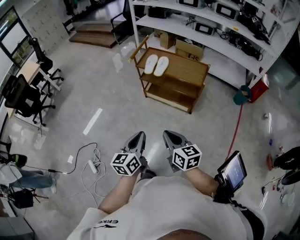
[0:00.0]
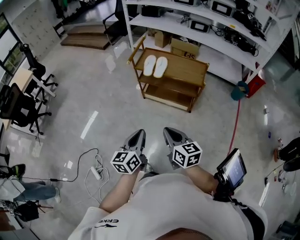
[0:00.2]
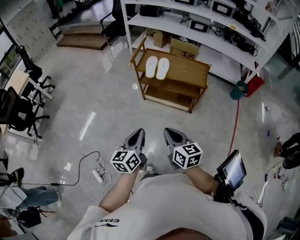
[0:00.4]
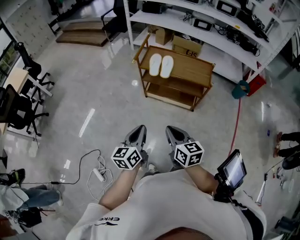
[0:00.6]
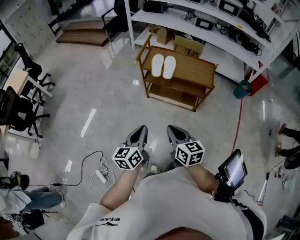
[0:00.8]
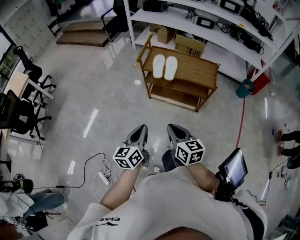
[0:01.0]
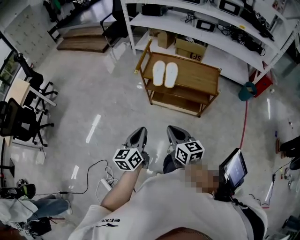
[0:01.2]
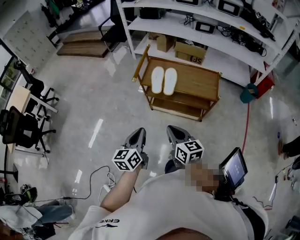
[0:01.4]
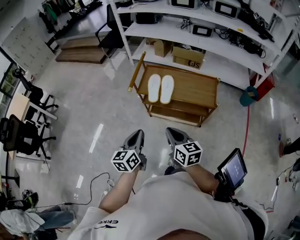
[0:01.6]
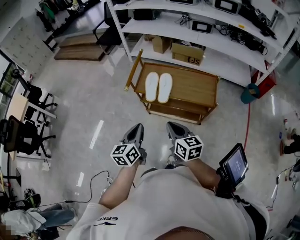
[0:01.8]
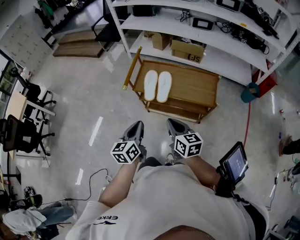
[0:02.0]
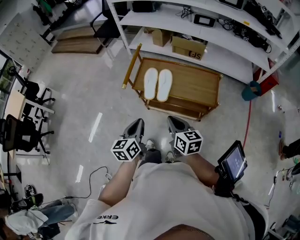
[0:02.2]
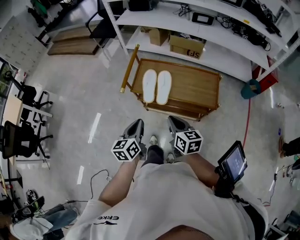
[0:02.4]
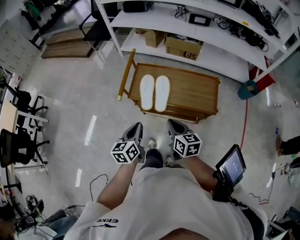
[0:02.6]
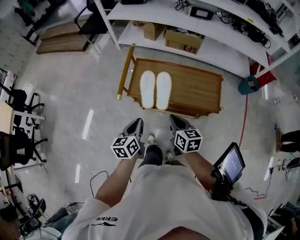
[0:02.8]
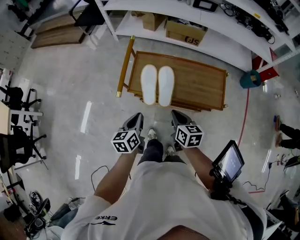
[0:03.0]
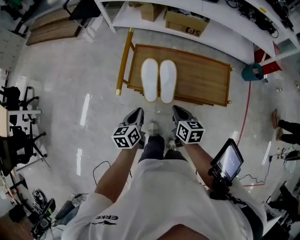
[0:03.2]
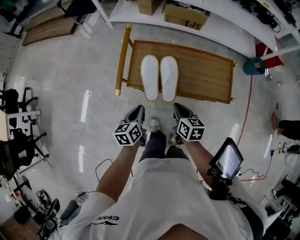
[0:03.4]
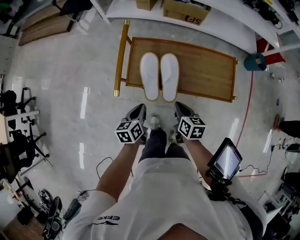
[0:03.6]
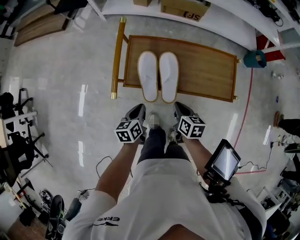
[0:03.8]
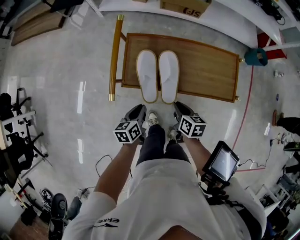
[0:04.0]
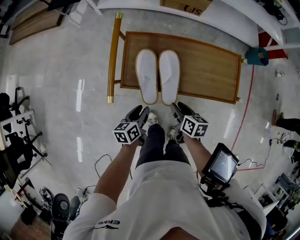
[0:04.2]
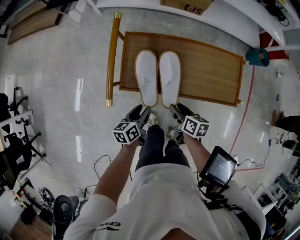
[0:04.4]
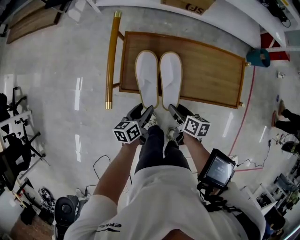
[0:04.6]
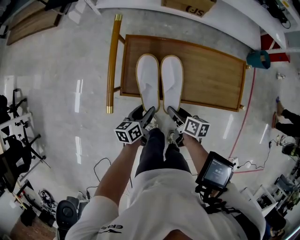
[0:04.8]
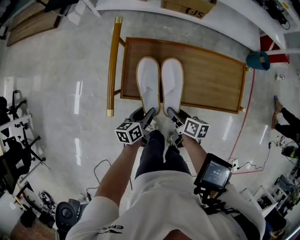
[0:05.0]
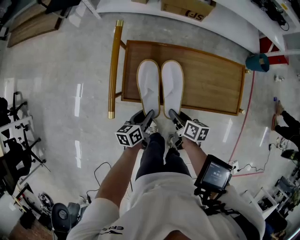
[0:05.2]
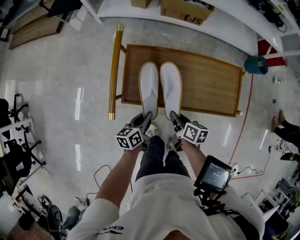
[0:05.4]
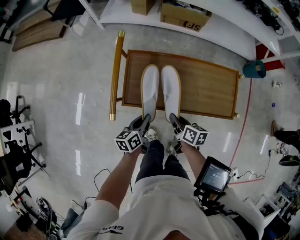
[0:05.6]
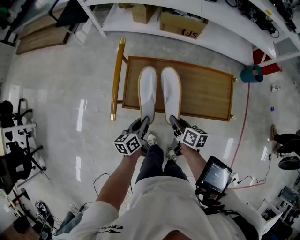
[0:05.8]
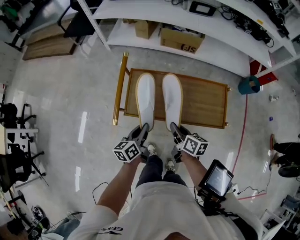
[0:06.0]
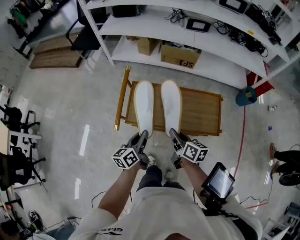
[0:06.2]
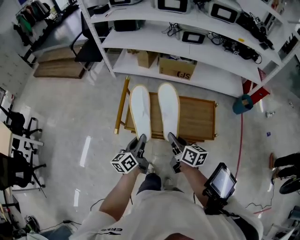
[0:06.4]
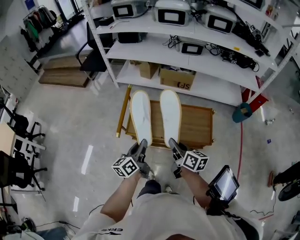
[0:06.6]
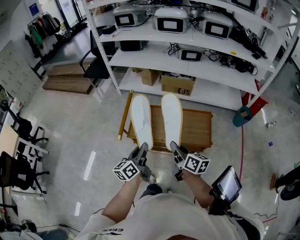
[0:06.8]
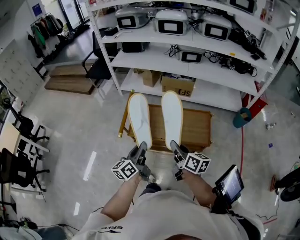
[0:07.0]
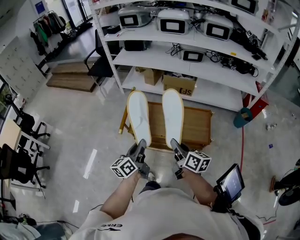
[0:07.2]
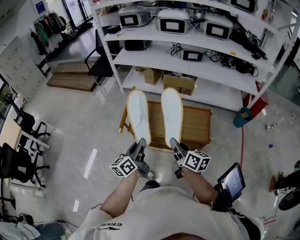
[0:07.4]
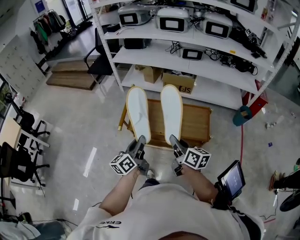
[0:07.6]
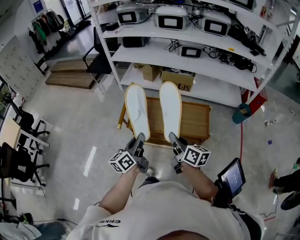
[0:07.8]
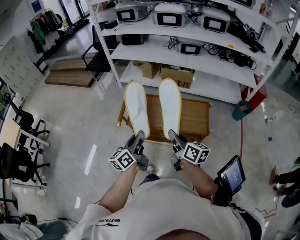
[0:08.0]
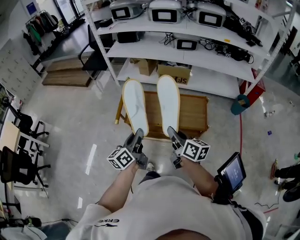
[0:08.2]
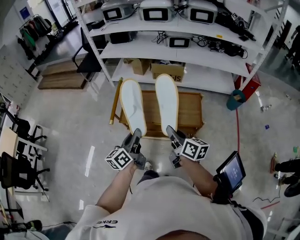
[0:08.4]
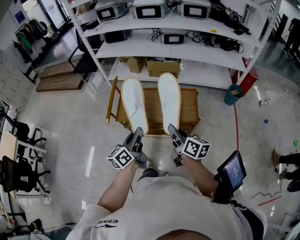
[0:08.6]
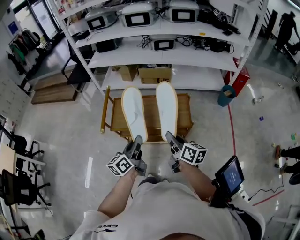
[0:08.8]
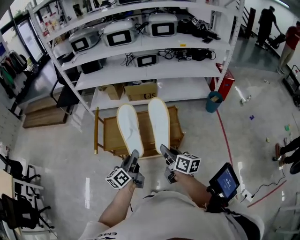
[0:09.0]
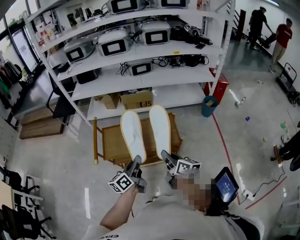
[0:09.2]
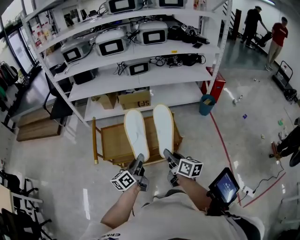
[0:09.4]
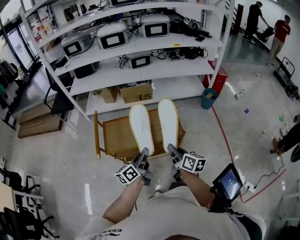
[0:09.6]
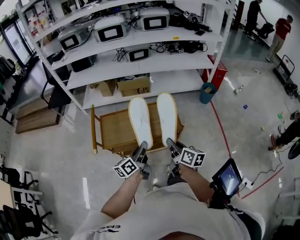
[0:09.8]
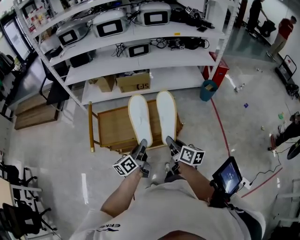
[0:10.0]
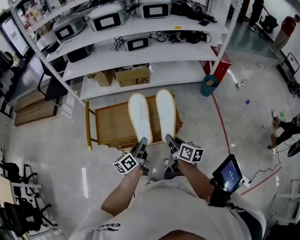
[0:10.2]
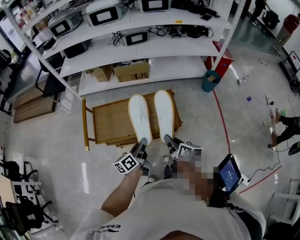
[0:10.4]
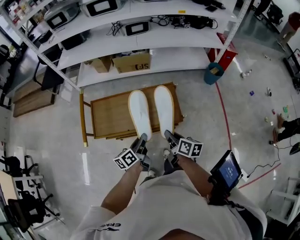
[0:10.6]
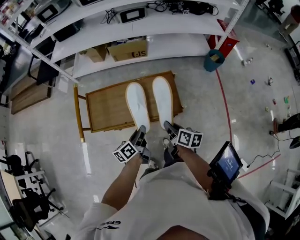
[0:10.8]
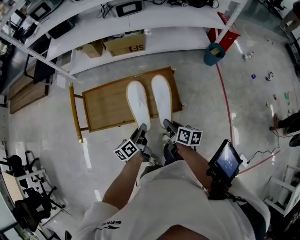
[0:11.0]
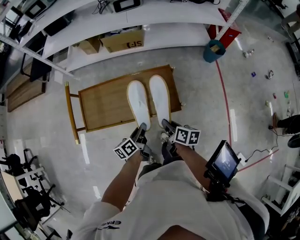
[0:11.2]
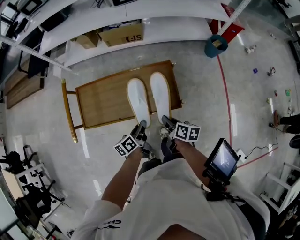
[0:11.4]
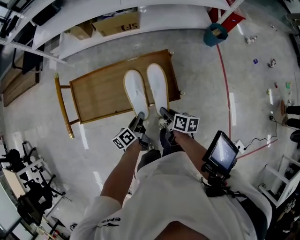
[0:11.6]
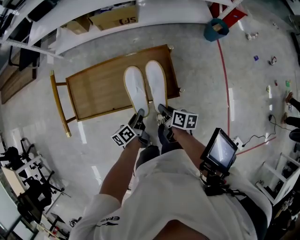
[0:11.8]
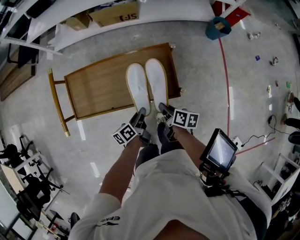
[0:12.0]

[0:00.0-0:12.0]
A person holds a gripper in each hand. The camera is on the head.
0:00.0 to 0:01.6: Both grippers travel together forward, about 30 cm.
0:01.6 to 0:03.0: The grippers both shift forward and downward by some 25 cm.
0:03.0 to 0:04.4: The left gripper is displaced downward and forward by roughly 20 cm, rotates approximately 20 degrees, and opens. The right gripper moves downward, some 15 cm, rotates some 30 degrees, and opens up.
0:04.4 to 0:06.0: Both grippers move upward, approximately 10 cm. The right gripper closes its fingers, while the left gripper closes.
0:06.0 to 0:07.6: Both grippers move upward and backward, some 25 cm. The right gripper changes its angle by about 20 degrees. Meanwhile the left gripper turns by approximately 20 degrees.
0:07.6 to 0:09.0: The grippers both shift to the right by approximately 10 cm.
0:09.0 to 0:10.4: The left gripper heads downward, forward and to the right, covering some 15 cm; the right gripper is displaced downward and forward by some 10 cm.
0:10.4 to 0:12.0: The right gripper heads downward and forward, covering some 20 cm, and rotates some 20 degrees, while the left gripper is displaced downward by roughly 15 cm, and changes its angle by roughly 20 degrees.

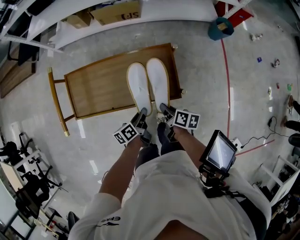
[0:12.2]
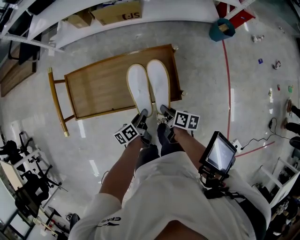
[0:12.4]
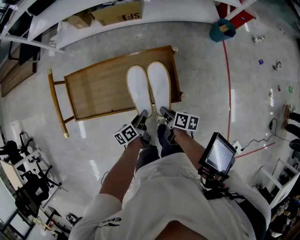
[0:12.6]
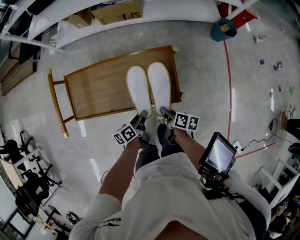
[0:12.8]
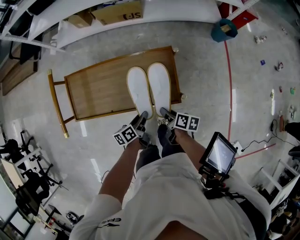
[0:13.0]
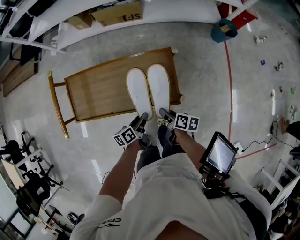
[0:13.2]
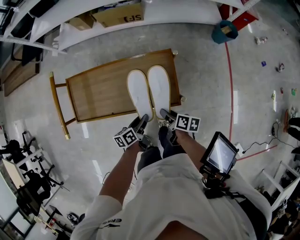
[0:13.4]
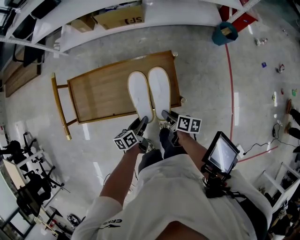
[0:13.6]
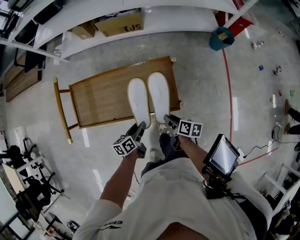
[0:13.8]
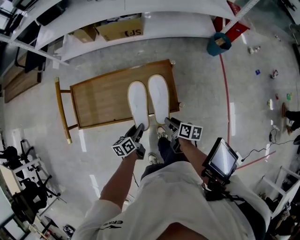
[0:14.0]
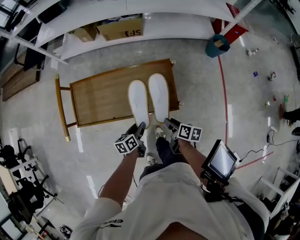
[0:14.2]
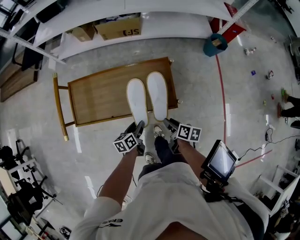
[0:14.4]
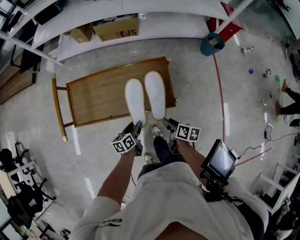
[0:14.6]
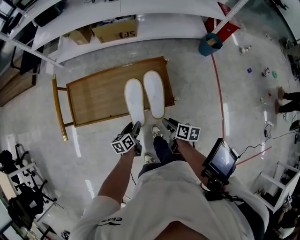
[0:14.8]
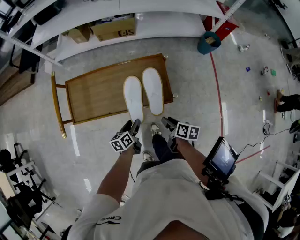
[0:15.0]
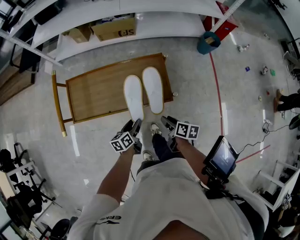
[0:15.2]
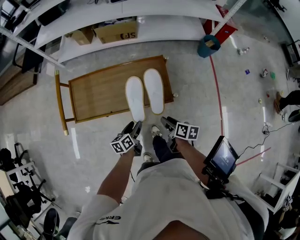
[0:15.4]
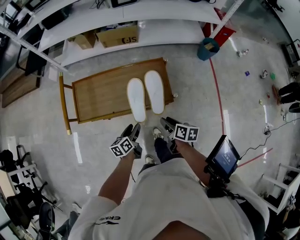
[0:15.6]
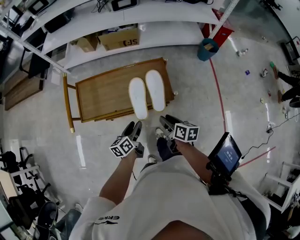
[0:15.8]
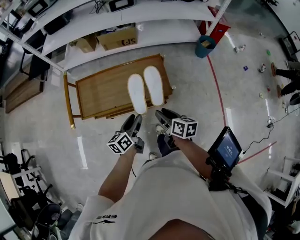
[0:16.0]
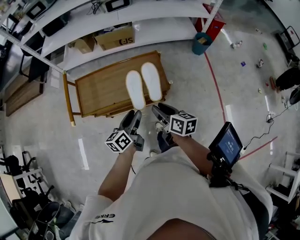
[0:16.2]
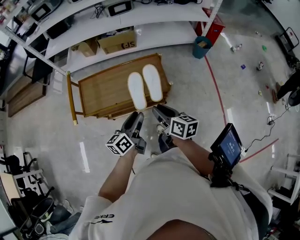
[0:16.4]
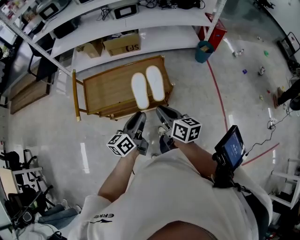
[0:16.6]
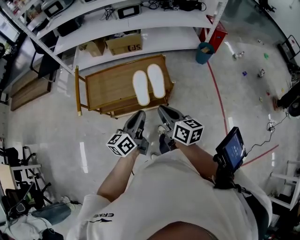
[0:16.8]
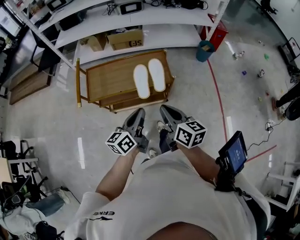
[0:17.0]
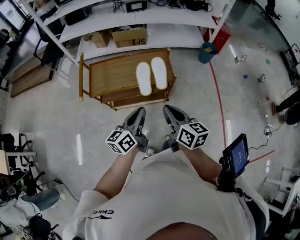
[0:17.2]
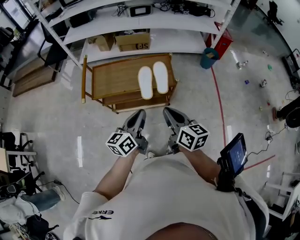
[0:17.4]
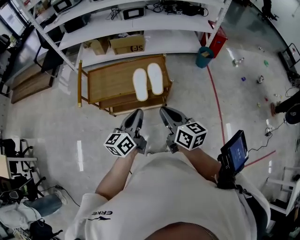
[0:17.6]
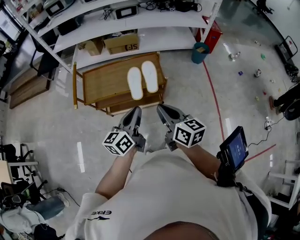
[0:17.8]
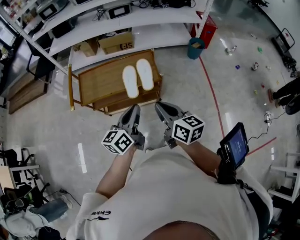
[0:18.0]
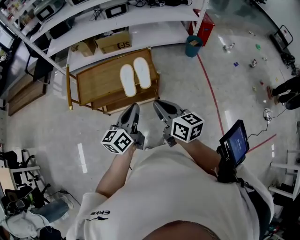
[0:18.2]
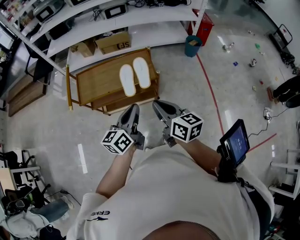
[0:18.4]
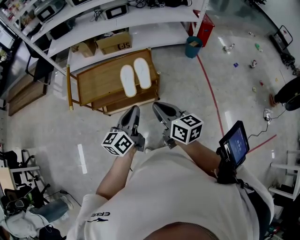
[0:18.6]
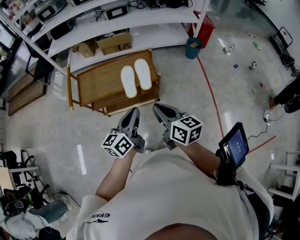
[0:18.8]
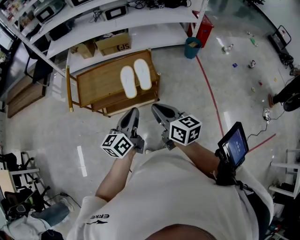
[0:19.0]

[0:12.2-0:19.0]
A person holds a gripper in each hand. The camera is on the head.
0:12.2 to 0:13.6: The left gripper opens its fingers. Meanwhile the right gripper opens up.
0:13.6 to 0:15.0: The right gripper heads backward, covering some 5 cm.
0:15.0 to 0:16.2: The right gripper shifts about 15 cm upward and to the left, and changes its angle by some 30 degrees. Meanwhile the left gripper goes approximately 20 cm upward, and swivels some 20 degrees.
0:16.2 to 0:17.6: The two grippers go approximately 20 cm backward and upward. The left gripper closes up, while the right gripper closes.
0:17.6 to 0:19.0: The grippers make only small movements.

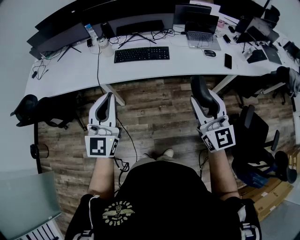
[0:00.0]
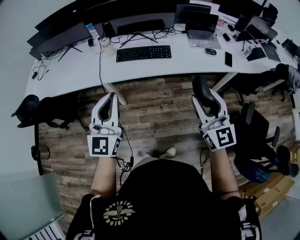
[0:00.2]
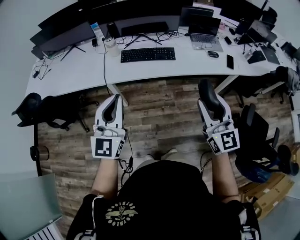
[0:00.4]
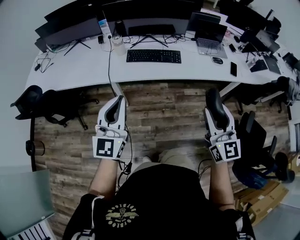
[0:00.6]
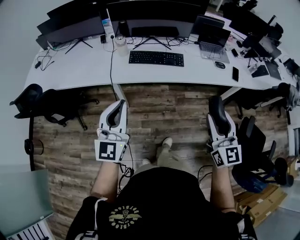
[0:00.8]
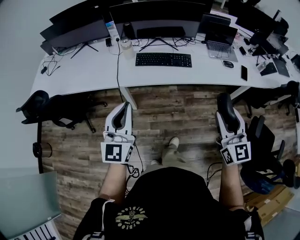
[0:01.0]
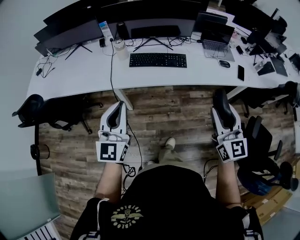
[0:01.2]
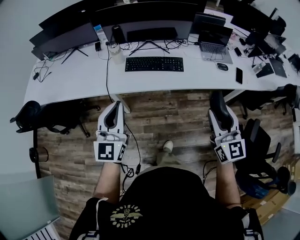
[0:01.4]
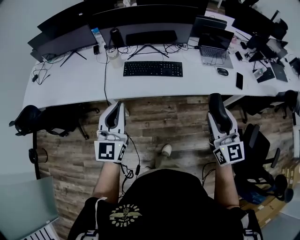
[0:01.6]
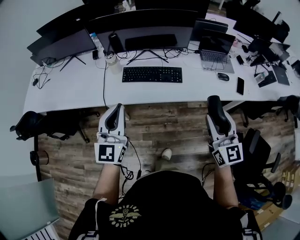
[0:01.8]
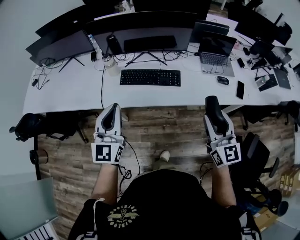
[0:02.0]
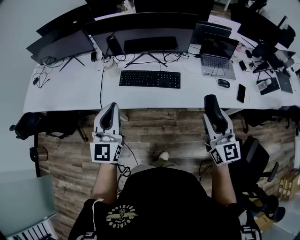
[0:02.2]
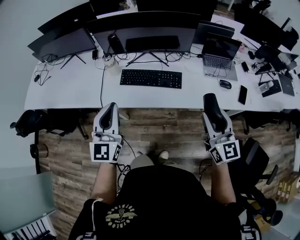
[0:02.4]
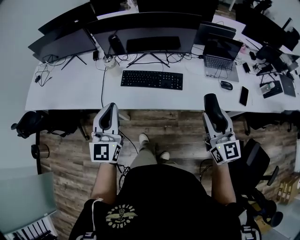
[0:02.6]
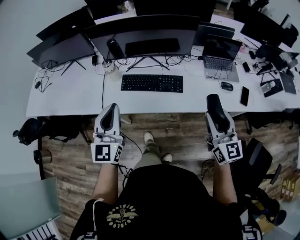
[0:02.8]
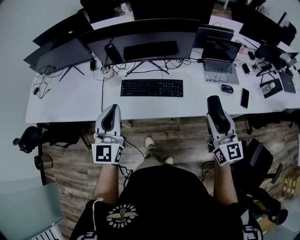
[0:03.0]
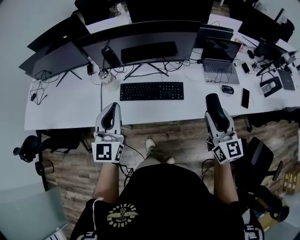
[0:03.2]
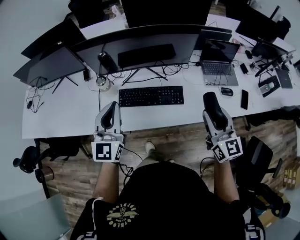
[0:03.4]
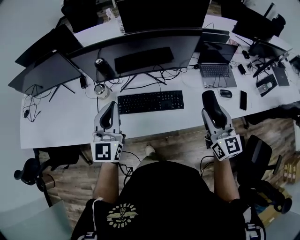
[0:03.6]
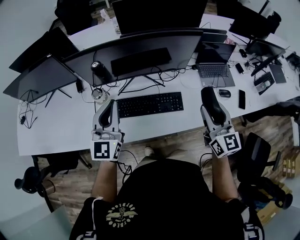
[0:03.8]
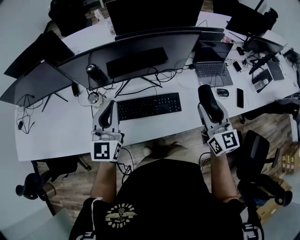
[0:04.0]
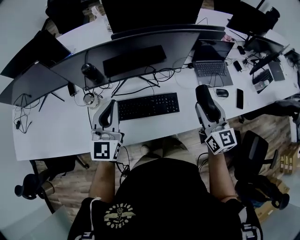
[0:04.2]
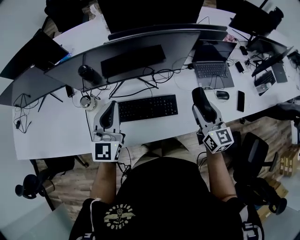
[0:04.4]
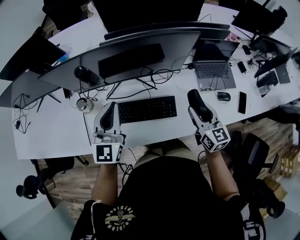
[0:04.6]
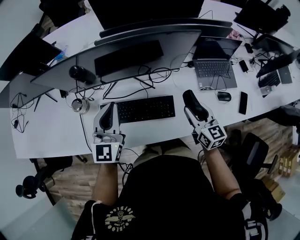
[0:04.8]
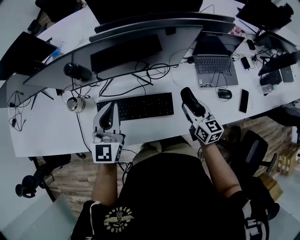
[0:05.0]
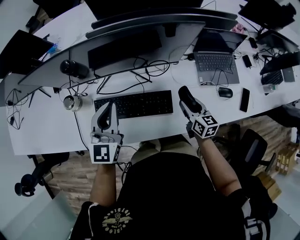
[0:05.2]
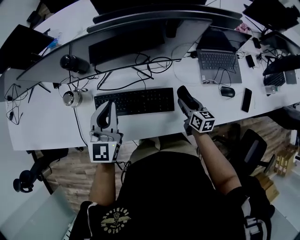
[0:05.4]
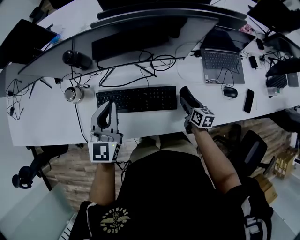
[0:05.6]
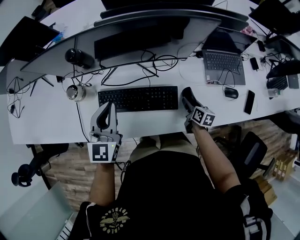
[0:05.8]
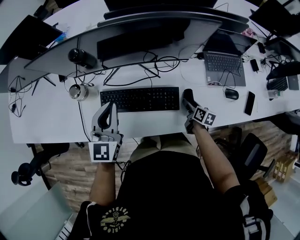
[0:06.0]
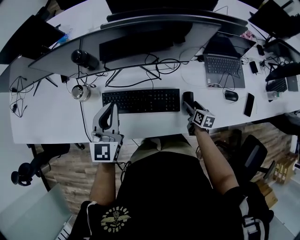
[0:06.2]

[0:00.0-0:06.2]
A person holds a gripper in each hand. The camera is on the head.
0:00.0 to 0:01.6: The left gripper travels forward and to the left by roughly 15 cm, while the right gripper moves forward, roughly 10 cm.
0:01.6 to 0:03.2: The two grippers go roughly 20 cm forward.
0:03.2 to 0:04.6: The left gripper moves forward, approximately 20 cm; the right gripper goes approximately 20 cm forward and downward.
0:04.6 to 0:06.2: The left gripper travels downward by roughly 5 cm. Meanwhile the right gripper travels downward by some 25 cm, rotates roughly 40 degrees, and opens up.
